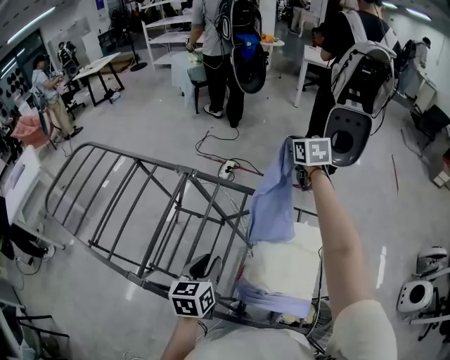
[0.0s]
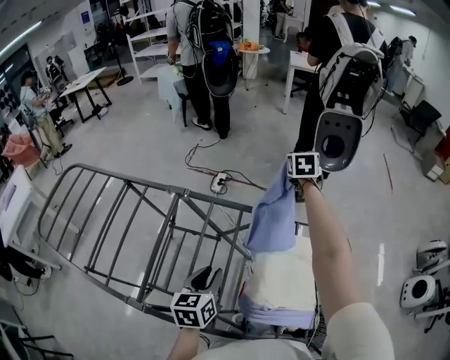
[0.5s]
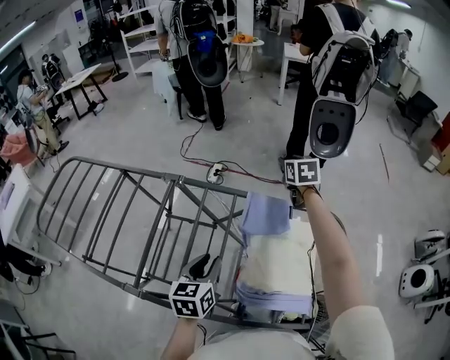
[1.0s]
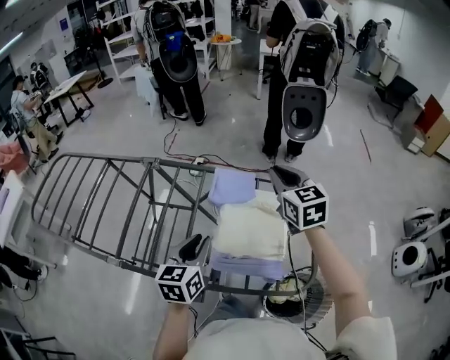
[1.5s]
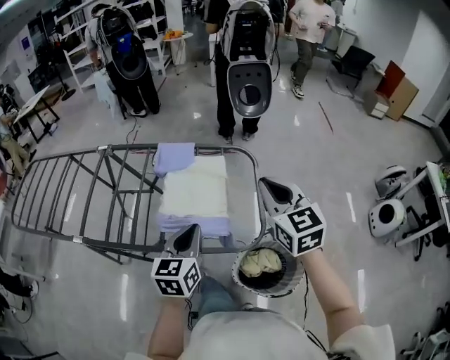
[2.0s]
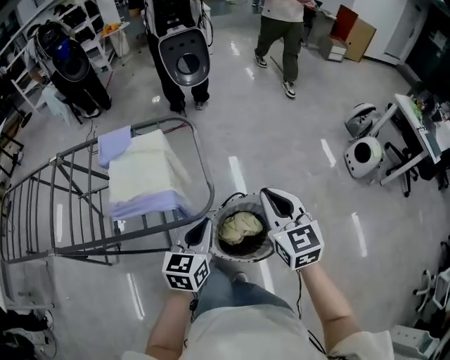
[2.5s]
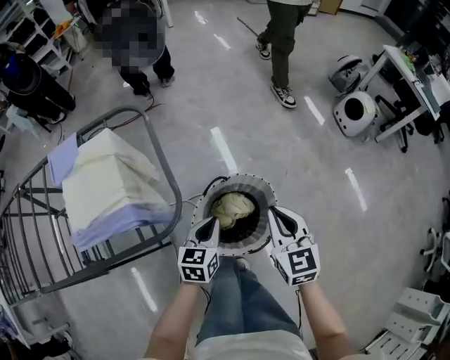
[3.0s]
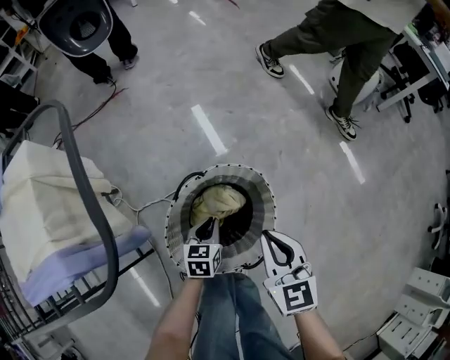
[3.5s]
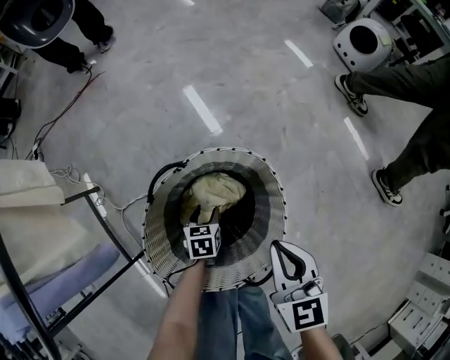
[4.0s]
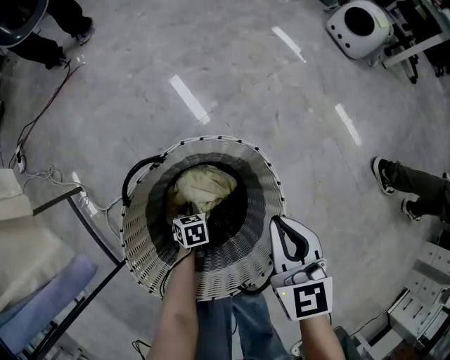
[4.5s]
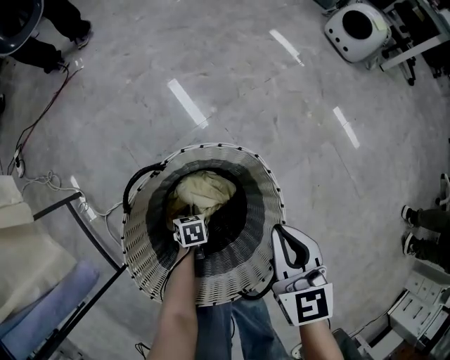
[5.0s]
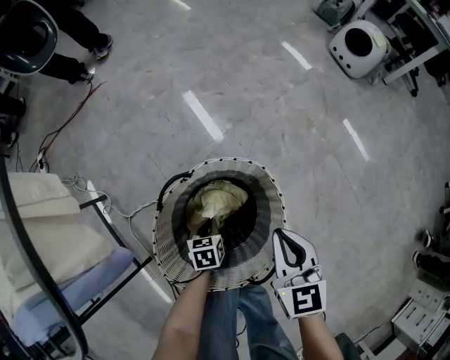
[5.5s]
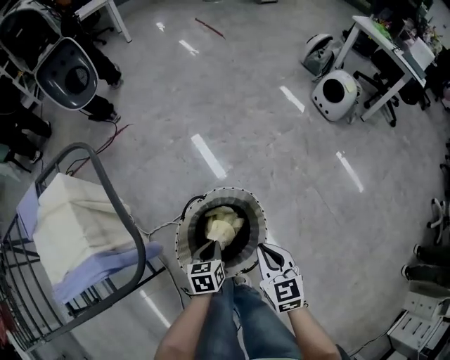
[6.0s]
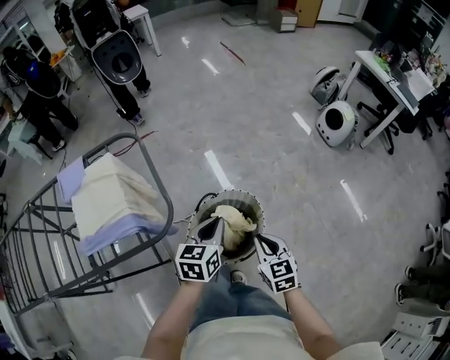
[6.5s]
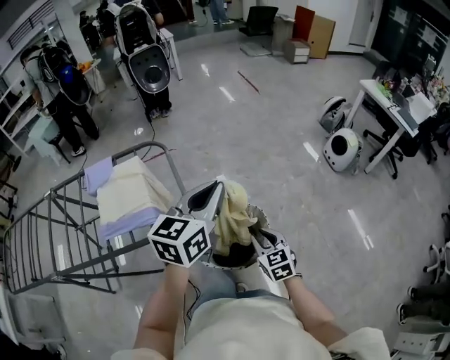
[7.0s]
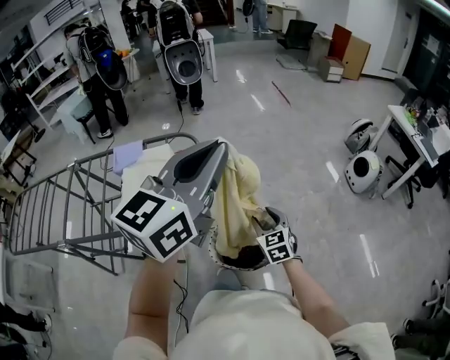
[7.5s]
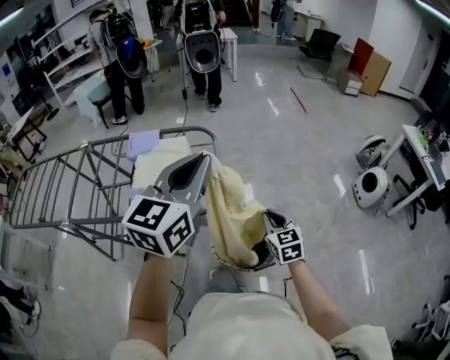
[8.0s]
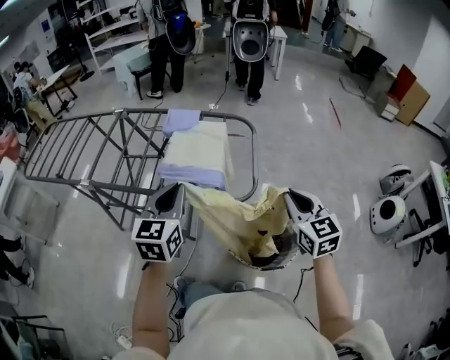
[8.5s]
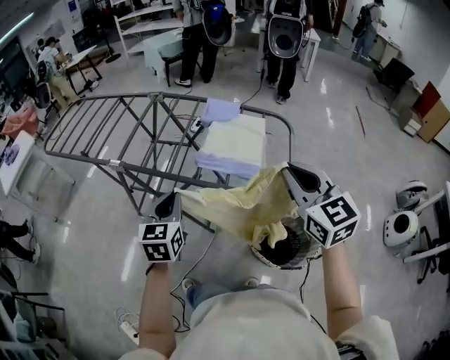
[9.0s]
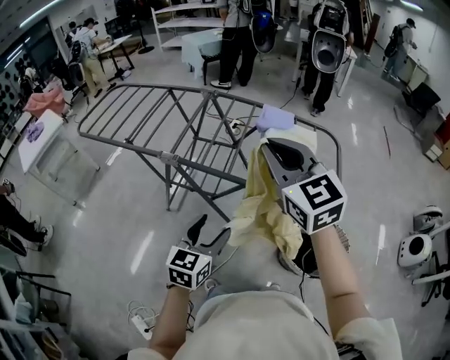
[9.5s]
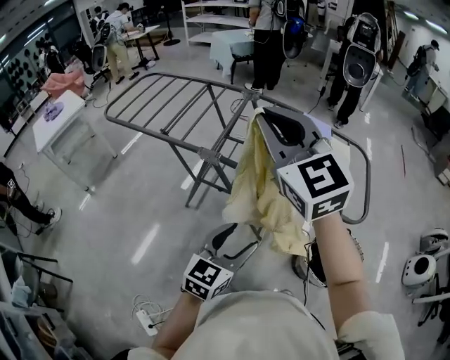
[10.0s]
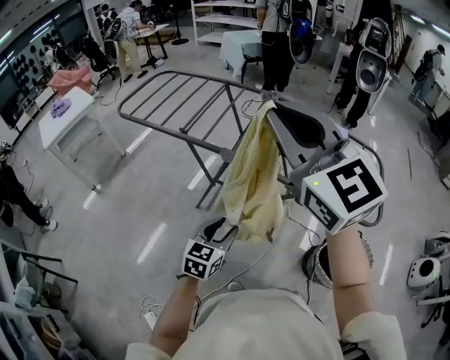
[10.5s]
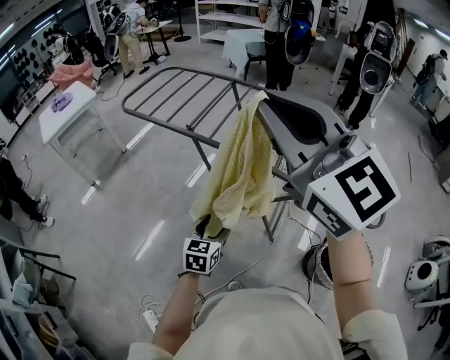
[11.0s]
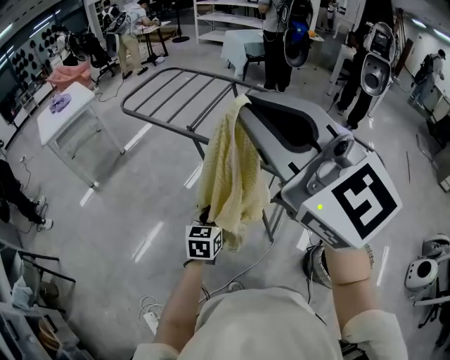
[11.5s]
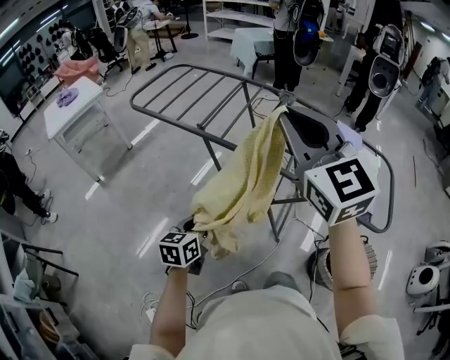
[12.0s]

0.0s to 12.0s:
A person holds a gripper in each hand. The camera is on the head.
0.0s to 2.0s: The left gripper travels to the right and backward by approximately 25 cm, and changes its angle by some 20 degrees; the right gripper travels backward and to the right by roughly 50 cm, and opens, then closes again.
2.0s to 4.0s: The grippers both shift downward by roughly 60 cm. The right gripper rotates about 40 degrees, while the left gripper tips its fingers downward by approximately 40 degrees, and opens up.
4.0s to 6.0s: The right gripper moves upward, roughly 15 cm, while the left gripper travels upward by about 30 cm, and closes its fingers.
6.0s to 8.0s: The left gripper is displaced upward by approximately 60 cm, and points its fingers about 50 degrees further upward. The right gripper travels upward and to the left by roughly 20 cm, changes its angle by some 30 degrees, and opens and closes again.
8.0s to 10.0s: The two grippers travel together, about 50 cm. The left gripper swivels approximately 20 degrees, and opens up, while the right gripper rotates about 50 degrees.
10.0s to 12.0s: The right gripper is displaced to the left by about 10 cm. Meanwhile the left gripper shifts approximately 30 cm to the left and forward, swivels about 30 degrees, and closes its fingers.

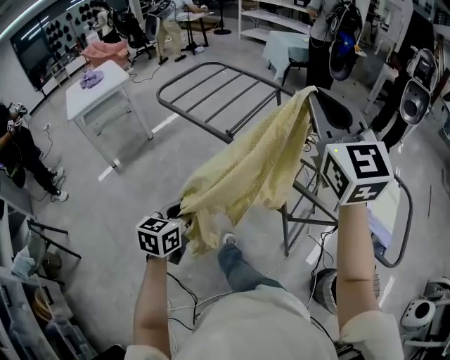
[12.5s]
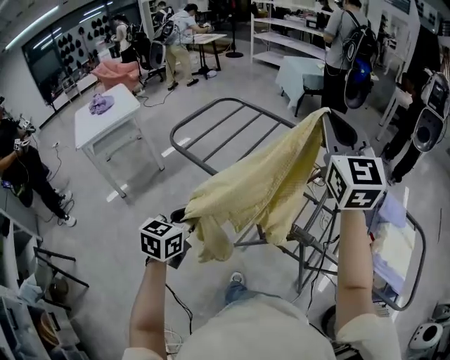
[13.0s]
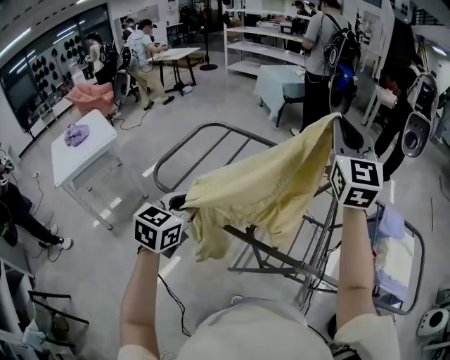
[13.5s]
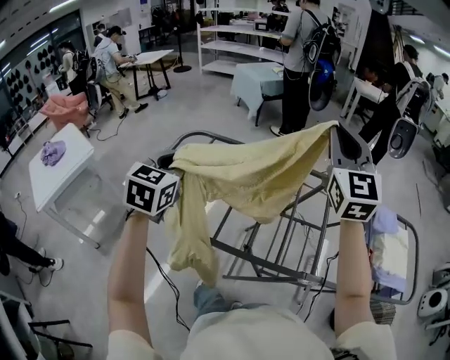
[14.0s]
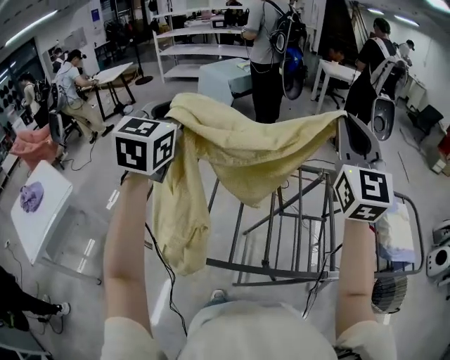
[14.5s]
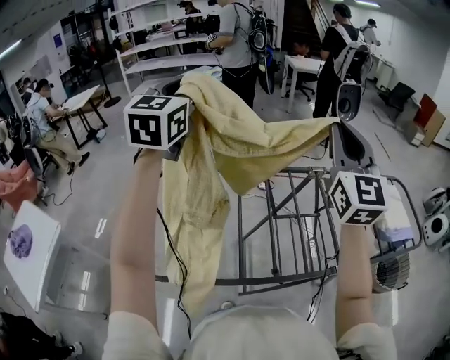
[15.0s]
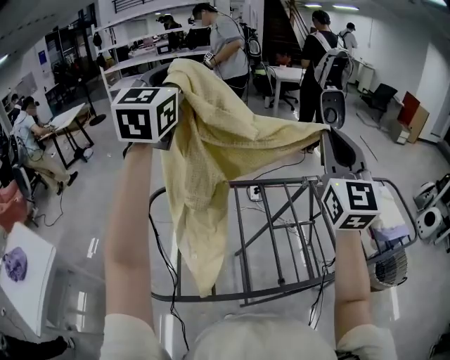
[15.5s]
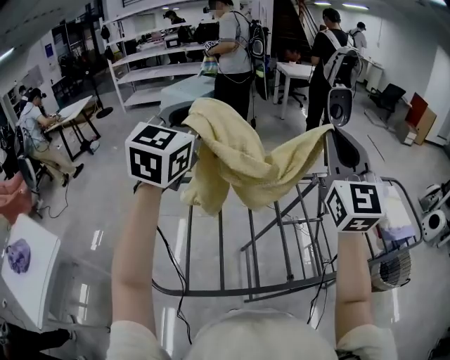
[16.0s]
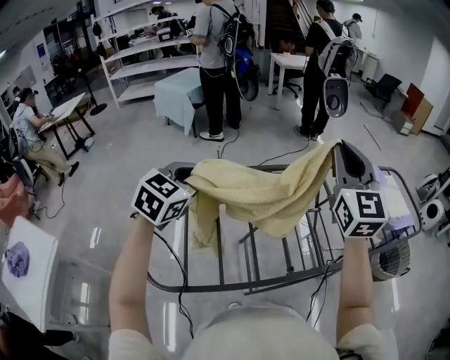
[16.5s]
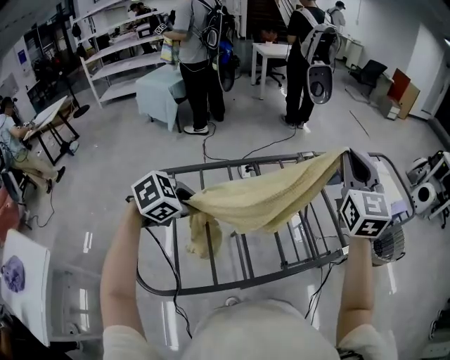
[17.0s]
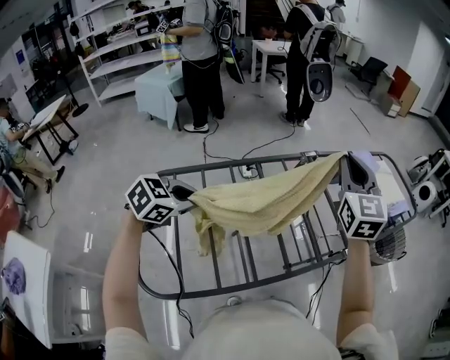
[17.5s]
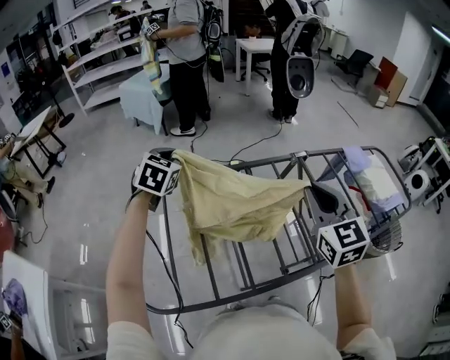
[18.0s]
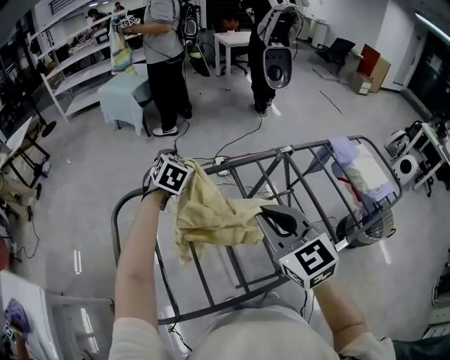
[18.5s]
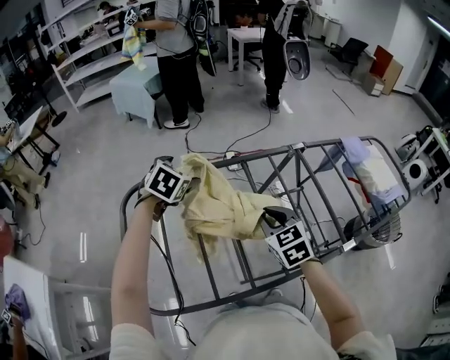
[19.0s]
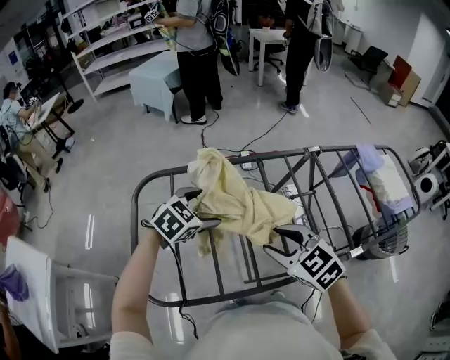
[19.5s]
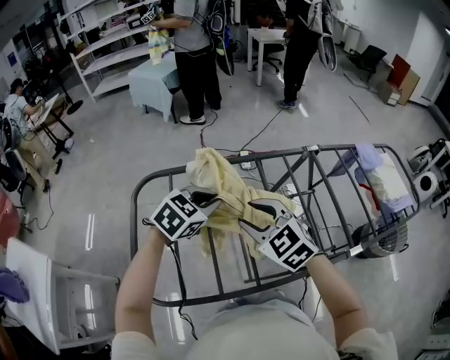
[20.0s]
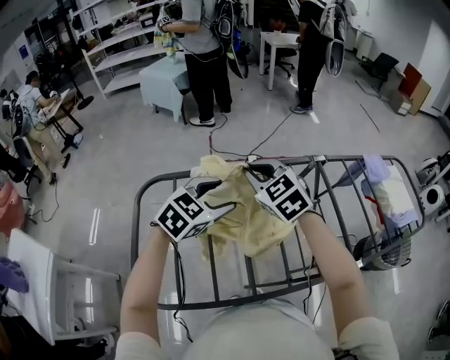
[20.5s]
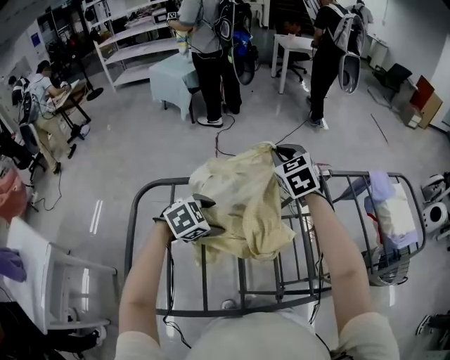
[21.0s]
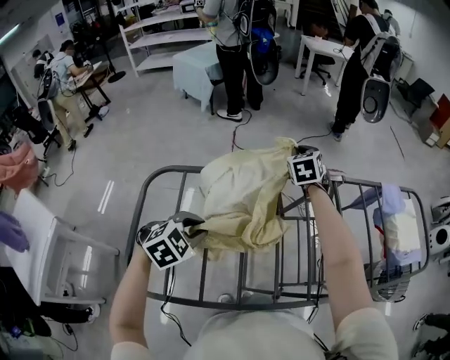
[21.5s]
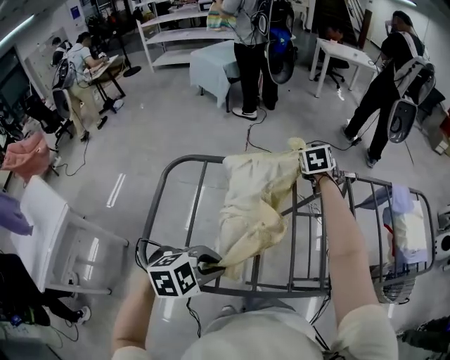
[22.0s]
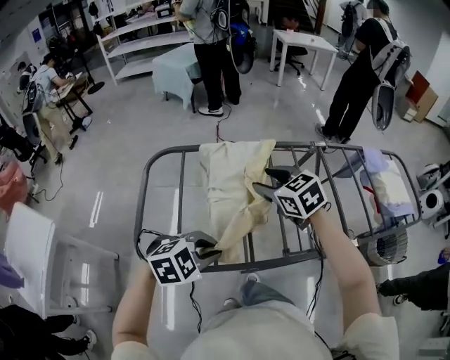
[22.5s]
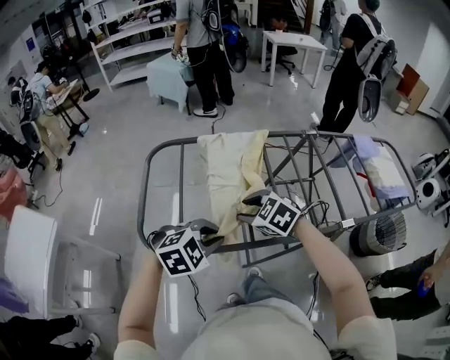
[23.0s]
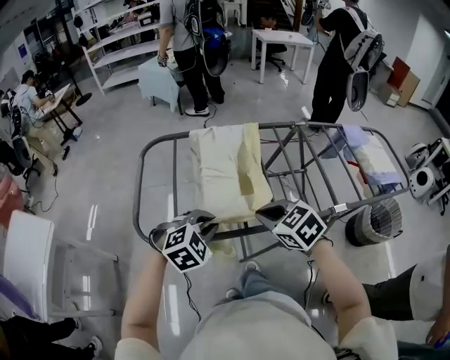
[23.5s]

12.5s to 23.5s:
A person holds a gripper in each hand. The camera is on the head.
12.5s to 14.5s: The right gripper shifts by roughly 30 cm, and rotates some 40 degrees. Meanwhile the left gripper moves some 70 cm, and swivels approximately 40 degrees.
14.5s to 16.0s: The left gripper shifts about 5 cm forward, moves approximately 15 cm upward and comes back, and swivels about 20 degrees.
16.0s to 18.0s: The grippers both shift downward by approximately 20 cm. The left gripper tilts its fingers roughly 30 degrees downward. The right gripper swivels roughly 30 degrees.
18.0s to 20.0s: The right gripper shifts some 20 cm to the left and downward, rotates approximately 40 degrees, and opens up. The left gripper shifts about 20 cm backward, to the right and downward, rotates approximately 30 degrees, and opens and closes again.
20.0s to 21.5s: The left gripper travels backward by approximately 5 cm, and opens, then closes again. The right gripper goes approximately 35 cm forward, changes its angle by some 30 degrees, and closes its fingers.
21.5s to 23.5s: The right gripper reaches some 5 cm downward, then returns, turns by some 40 degrees, and opens, then closes once more; the left gripper changes place by roughly 20 cm.

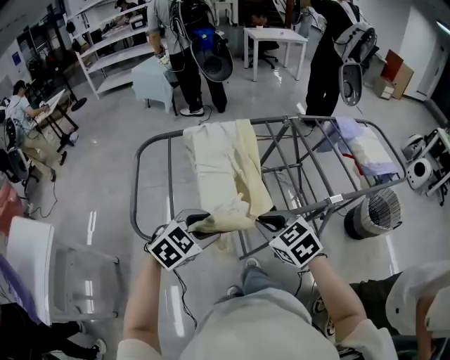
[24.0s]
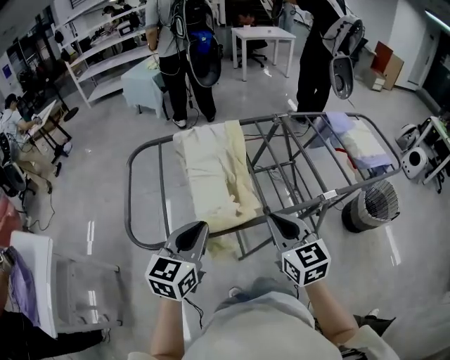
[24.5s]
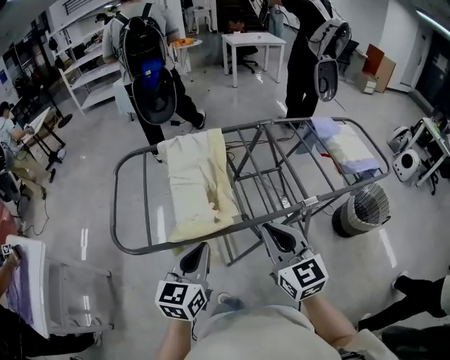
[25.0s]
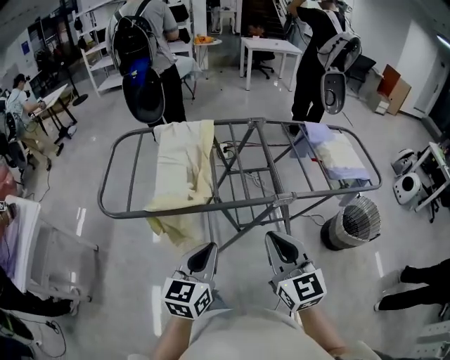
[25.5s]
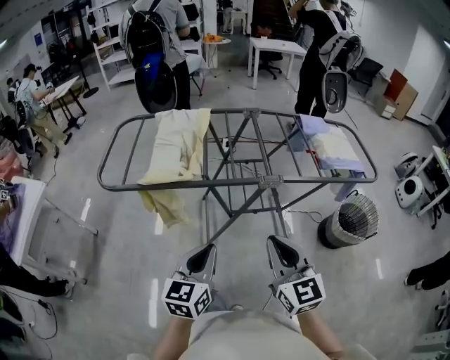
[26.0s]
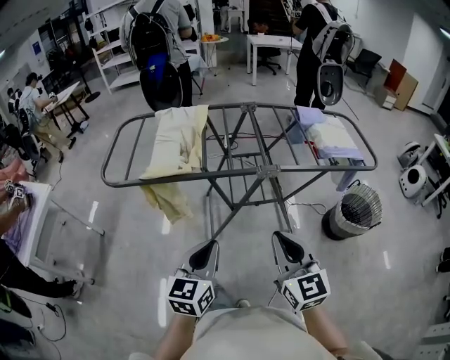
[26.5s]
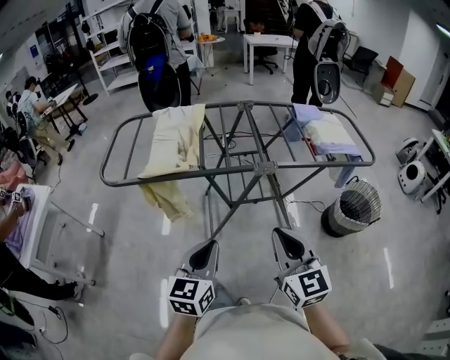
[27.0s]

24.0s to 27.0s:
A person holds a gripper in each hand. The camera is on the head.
24.0s to 25.5s: The left gripper is displaced to the right and backward by approximately 20 cm, tilts its fingers some 30 degrees upward, and closes, while the right gripper heads to the right, backward and upward, covering roughly 25 cm, and points its fingers approximately 30 degrees further upward.
25.5s to 27.0s: The two grippers go about 15 cm backward and to the right.
